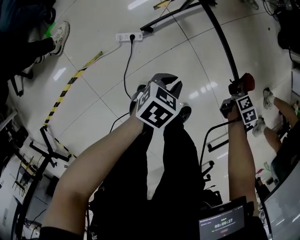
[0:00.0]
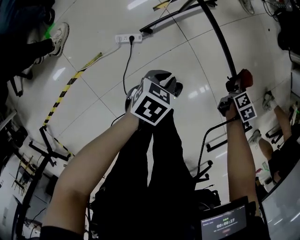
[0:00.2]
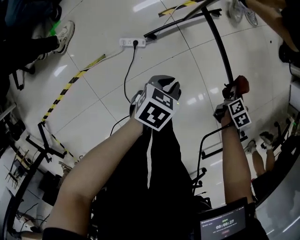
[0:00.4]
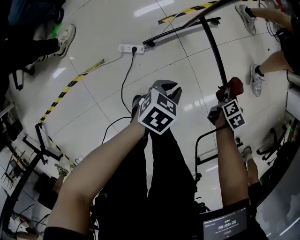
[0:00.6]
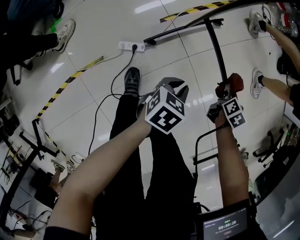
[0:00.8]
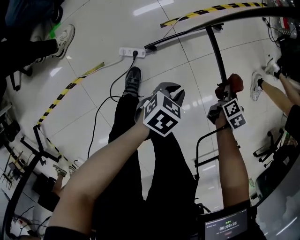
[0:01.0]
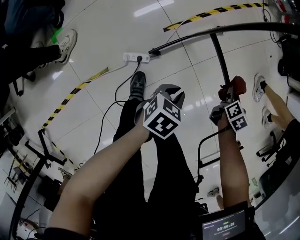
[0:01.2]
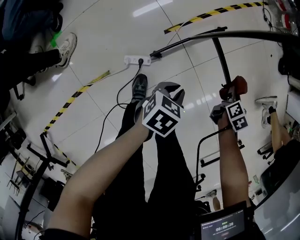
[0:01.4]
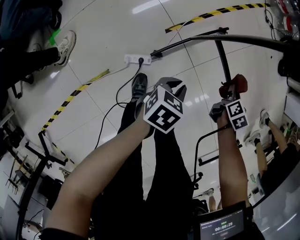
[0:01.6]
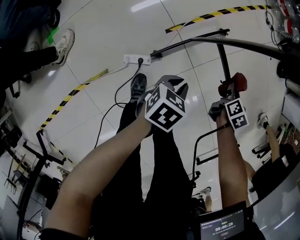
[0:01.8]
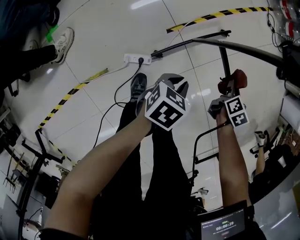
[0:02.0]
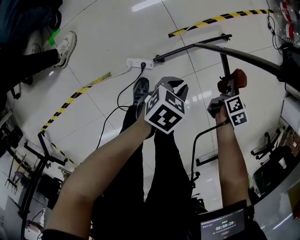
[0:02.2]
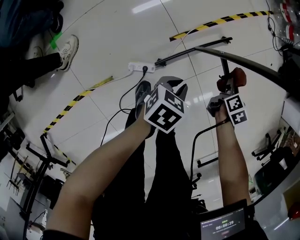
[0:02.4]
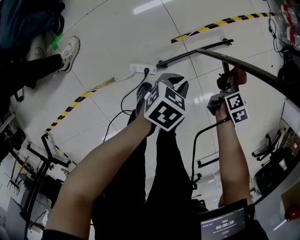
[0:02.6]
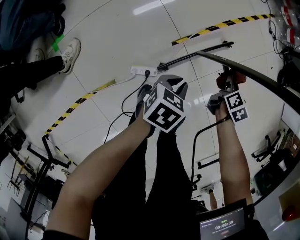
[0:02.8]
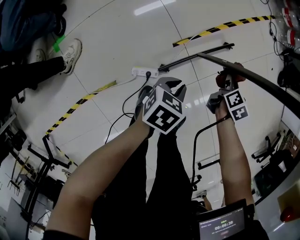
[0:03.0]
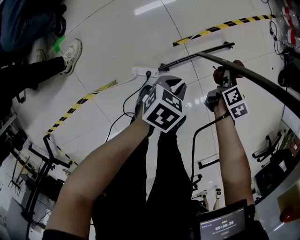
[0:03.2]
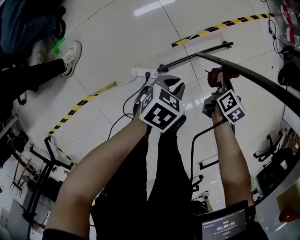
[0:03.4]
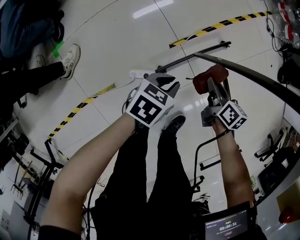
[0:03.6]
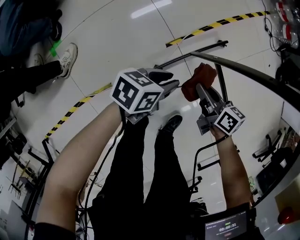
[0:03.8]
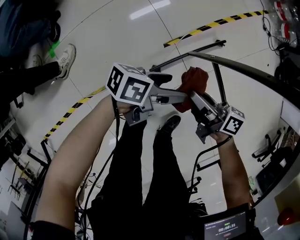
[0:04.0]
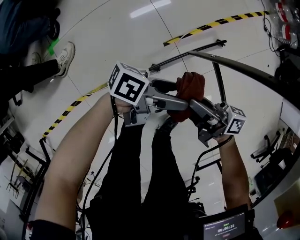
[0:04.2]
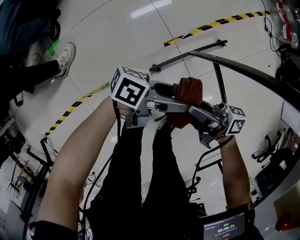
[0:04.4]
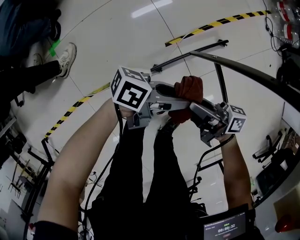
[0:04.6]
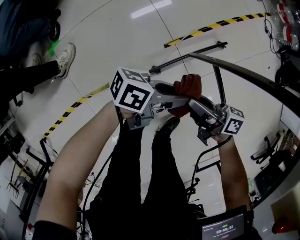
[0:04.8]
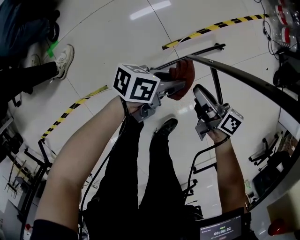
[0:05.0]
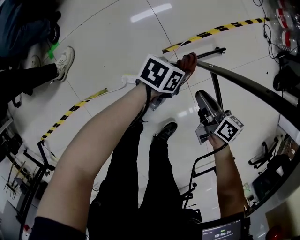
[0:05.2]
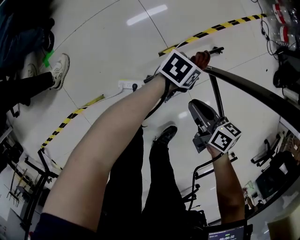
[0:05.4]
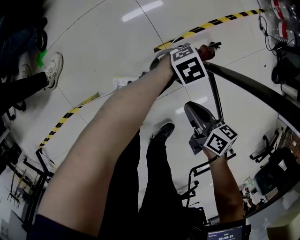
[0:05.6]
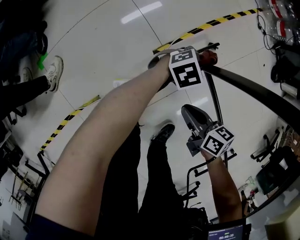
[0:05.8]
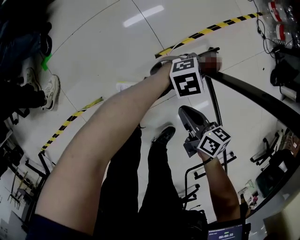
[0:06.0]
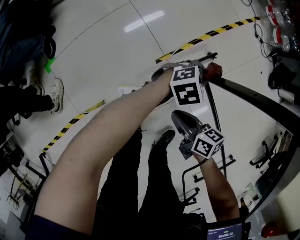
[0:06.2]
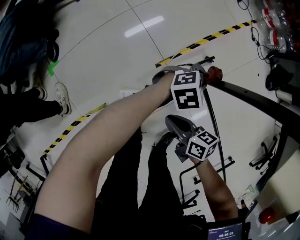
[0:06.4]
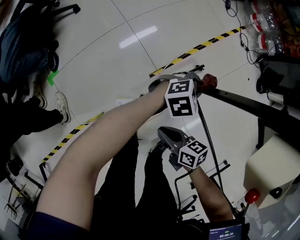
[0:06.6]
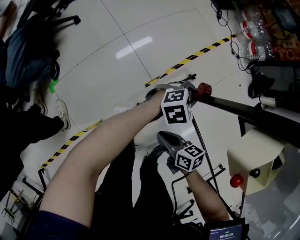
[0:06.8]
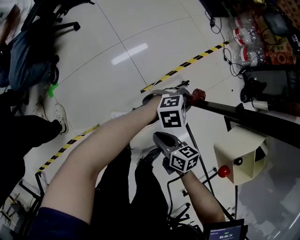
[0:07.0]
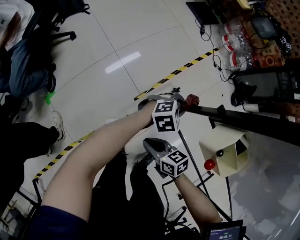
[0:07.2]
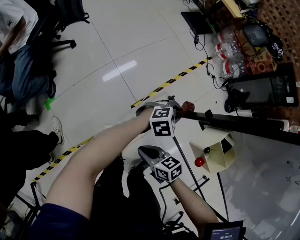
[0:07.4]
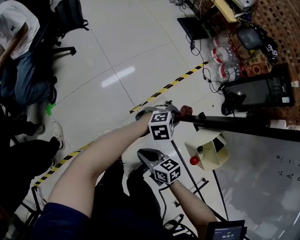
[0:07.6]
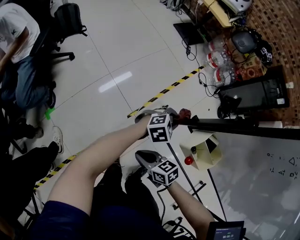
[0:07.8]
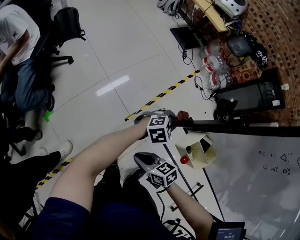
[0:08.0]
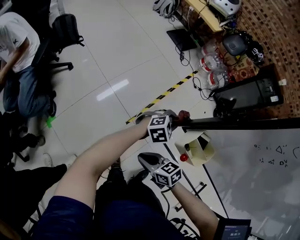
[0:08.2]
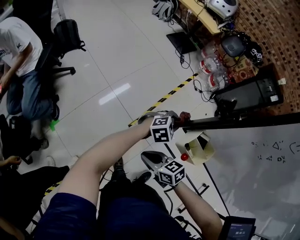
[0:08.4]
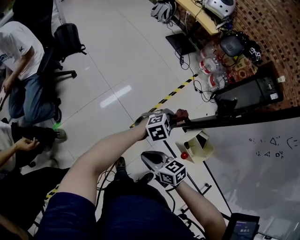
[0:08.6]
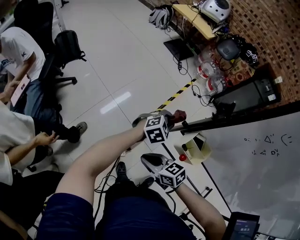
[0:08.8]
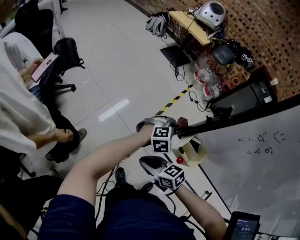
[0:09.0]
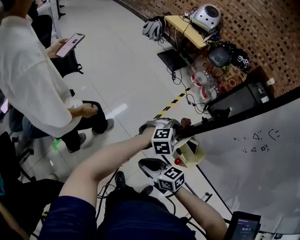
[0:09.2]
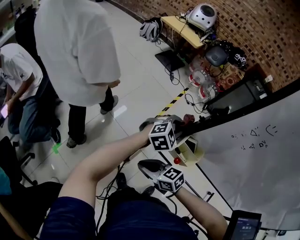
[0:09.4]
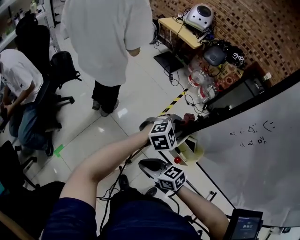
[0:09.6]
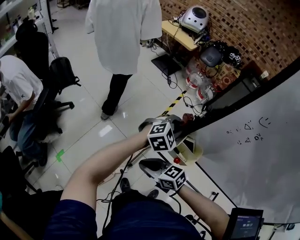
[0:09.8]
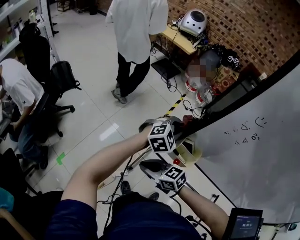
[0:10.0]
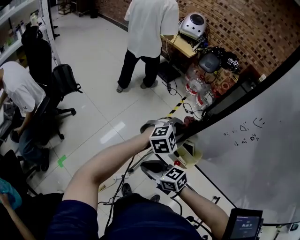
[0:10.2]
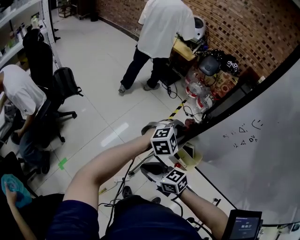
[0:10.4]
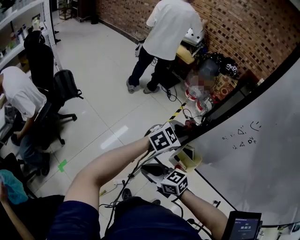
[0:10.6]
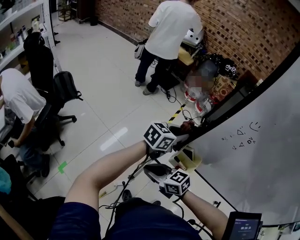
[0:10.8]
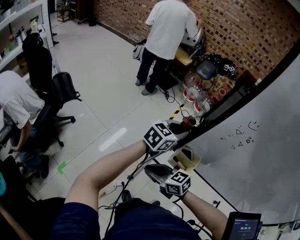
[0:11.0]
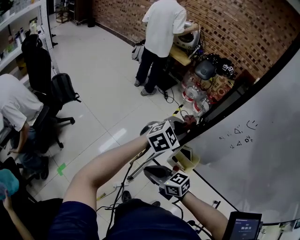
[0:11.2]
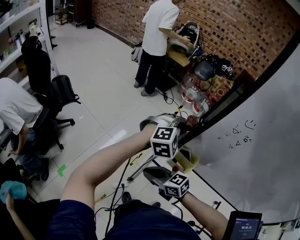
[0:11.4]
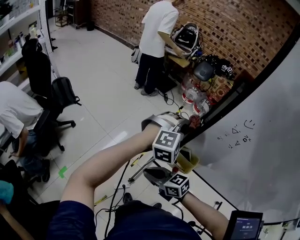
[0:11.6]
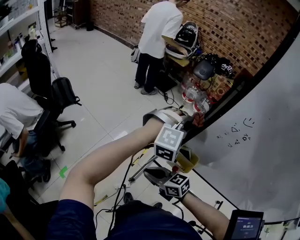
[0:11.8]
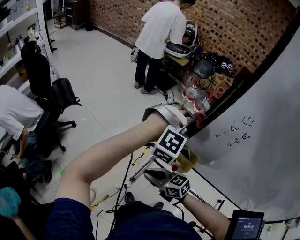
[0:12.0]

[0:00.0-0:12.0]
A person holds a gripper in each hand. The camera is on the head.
0:00.0 to 0:01.6: The right gripper travels to the left by about 20 cm. The left gripper heads to the left and forward, covering approximately 15 cm.
0:01.6 to 0:03.0: The right gripper travels to the left by some 15 cm; the left gripper moves to the left, some 10 cm.
0:03.0 to 0:04.4: The right gripper shifts by about 25 cm, and points its fingers roughly 50 degrees further upward; the left gripper heads upward, covering approximately 10 cm, tips its fingers upward by about 50 degrees, and opens its fingers.
0:04.4 to 0:06.0: The right gripper heads downward, covering approximately 10 cm, and angles its fingers downward, by some 40 degrees, while the left gripper moves approximately 20 cm, tips its fingers downward by roughly 50 degrees, and closes up.
0:06.0 to 0:07.6: The two grippers go about 25 cm upward. The right gripper changes its angle by some 20 degrees.
0:07.6 to 0:09.0: Both grippers travel together upward, about 15 cm. The left gripper turns by about 20 degrees.
0:09.0 to 0:10.4: The left gripper goes approximately 15 cm upward. The right gripper is displaced upward by approximately 5 cm.
0:10.4 to 0:12.0: The left gripper heads upward, covering roughly 10 cm, and rolls clockwise, seen from behind, by roughly 50 degrees.

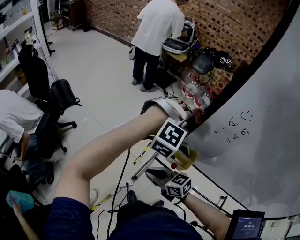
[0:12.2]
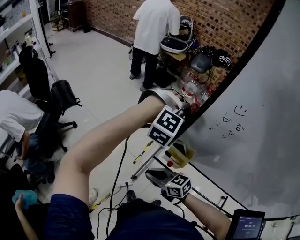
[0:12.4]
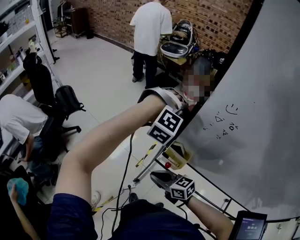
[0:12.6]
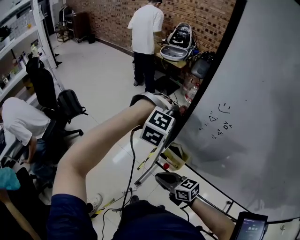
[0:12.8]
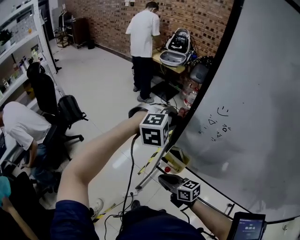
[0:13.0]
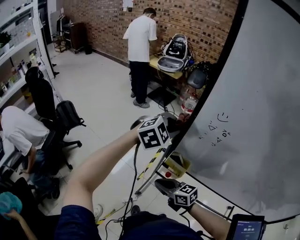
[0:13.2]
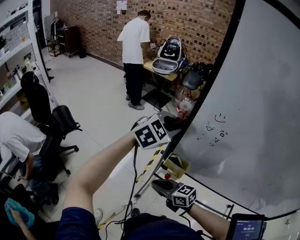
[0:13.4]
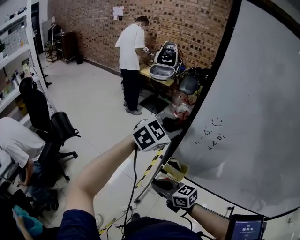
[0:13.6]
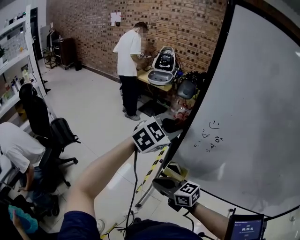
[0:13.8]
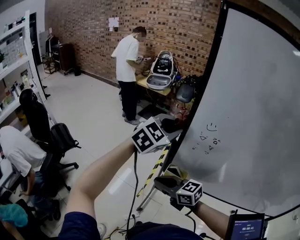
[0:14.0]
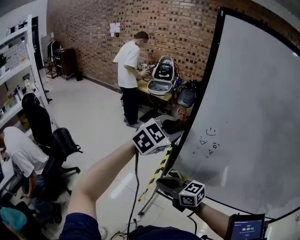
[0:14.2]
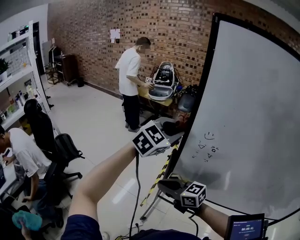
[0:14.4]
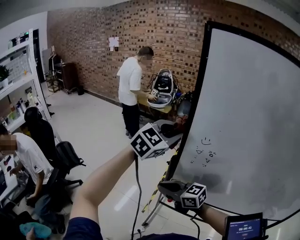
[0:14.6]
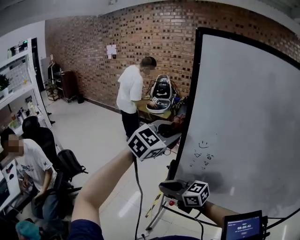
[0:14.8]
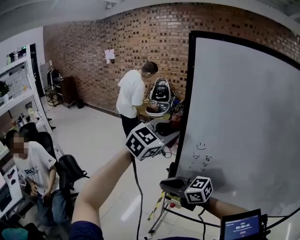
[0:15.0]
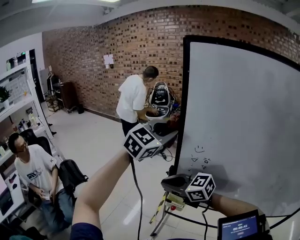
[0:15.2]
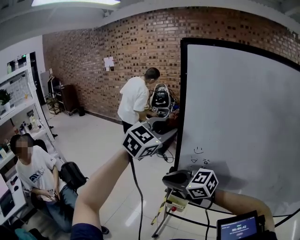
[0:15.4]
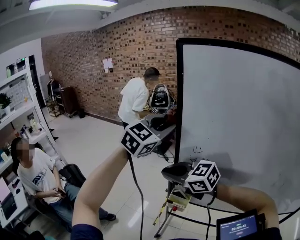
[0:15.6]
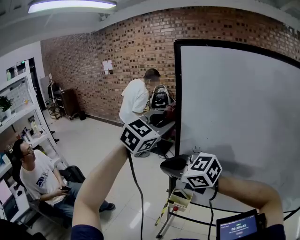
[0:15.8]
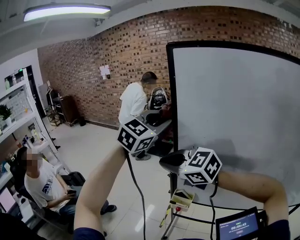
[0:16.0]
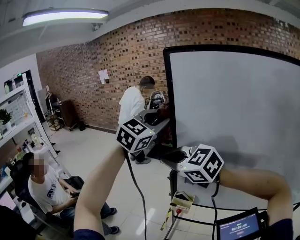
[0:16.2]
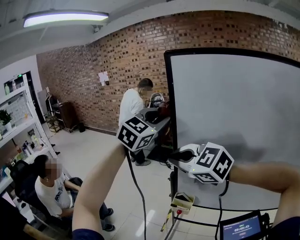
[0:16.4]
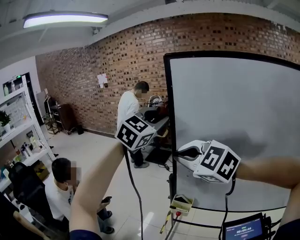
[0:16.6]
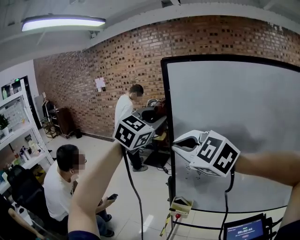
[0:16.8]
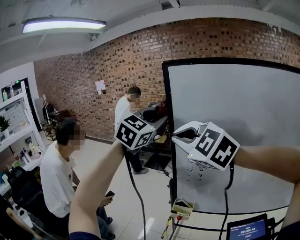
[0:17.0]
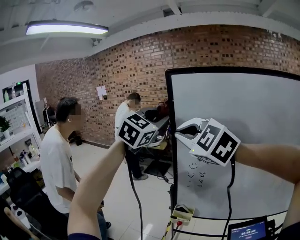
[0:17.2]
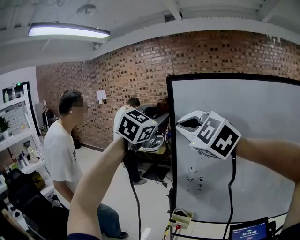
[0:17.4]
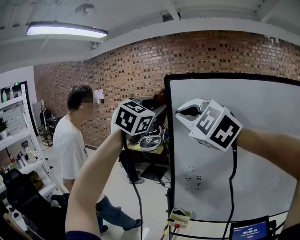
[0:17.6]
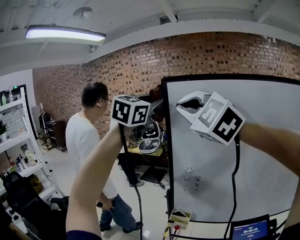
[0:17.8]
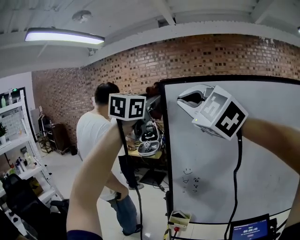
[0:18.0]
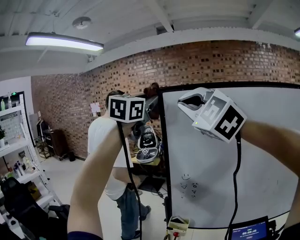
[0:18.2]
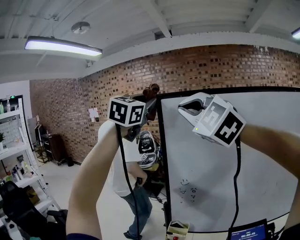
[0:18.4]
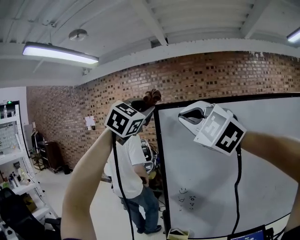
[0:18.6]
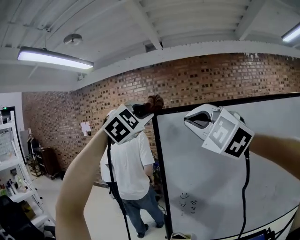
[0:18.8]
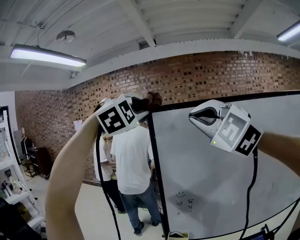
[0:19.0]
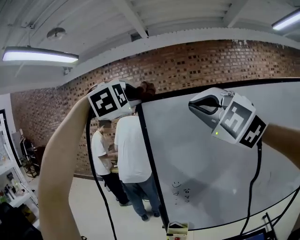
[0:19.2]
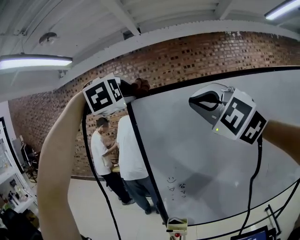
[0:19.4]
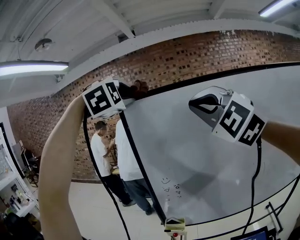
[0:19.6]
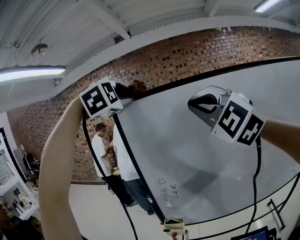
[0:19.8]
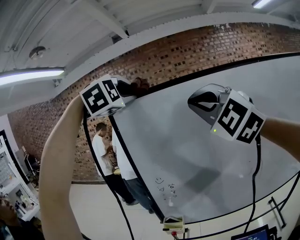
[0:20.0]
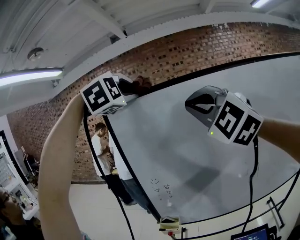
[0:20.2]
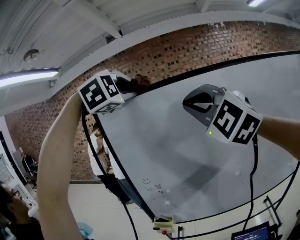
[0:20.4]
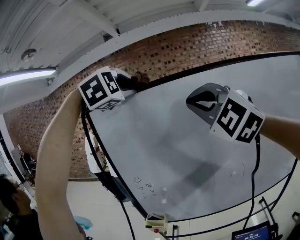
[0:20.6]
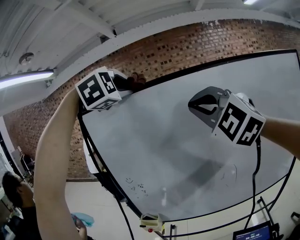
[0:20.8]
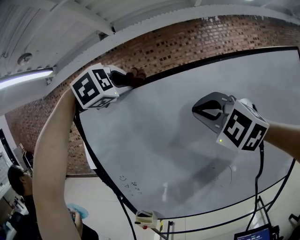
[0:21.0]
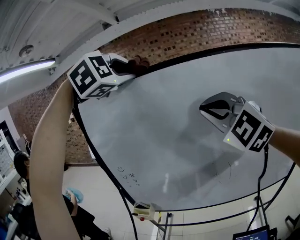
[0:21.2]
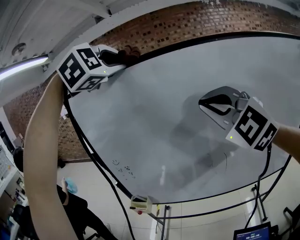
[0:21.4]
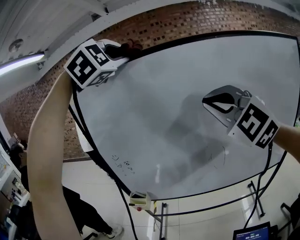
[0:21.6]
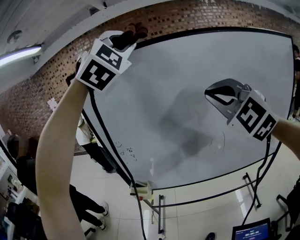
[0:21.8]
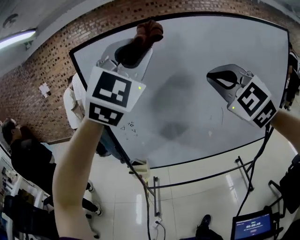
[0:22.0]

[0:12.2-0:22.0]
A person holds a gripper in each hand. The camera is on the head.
0:12.2 to 0:13.6: The grippers both shift upward by approximately 10 cm. The left gripper rolls counterclockwise, seen from behind, by approximately 60 degrees.
0:13.6 to 0:15.0: Both grippers move upward, about 15 cm.
0:15.0 to 0:16.4: The left gripper shifts approximately 10 cm upward. Meanwhile the right gripper is displaced upward by about 20 cm, and turns by some 40 degrees.
0:16.4 to 0:17.8: The right gripper travels upward by roughly 25 cm, and rotates approximately 40 degrees, while the left gripper travels upward by roughly 15 cm.
0:17.8 to 0:19.2: The left gripper is displaced upward by approximately 10 cm, and rotates around the line of its fingers by about 60 degrees, clockwise from behind; the right gripper is displaced to the right and upward by roughly 10 cm.
0:19.2 to 0:20.6: The two grippers go roughly 20 cm to the right.
0:20.6 to 0:22.0: The left gripper moves backward and downward, about 20 cm, and angles its fingers upward, by roughly 40 degrees; the right gripper shifts approximately 15 cm downward, backward and to the right.

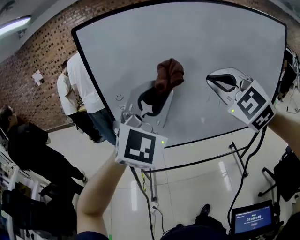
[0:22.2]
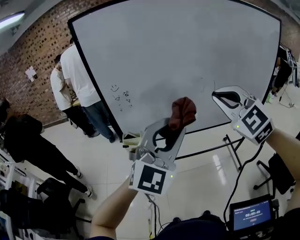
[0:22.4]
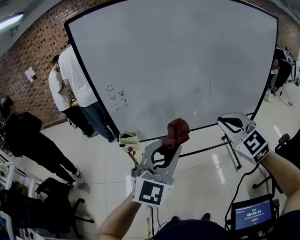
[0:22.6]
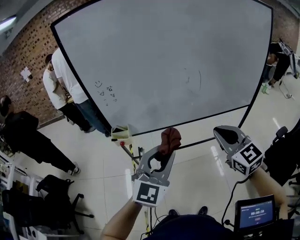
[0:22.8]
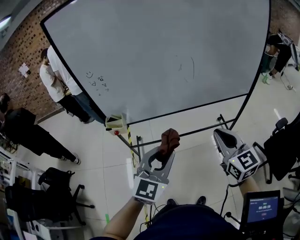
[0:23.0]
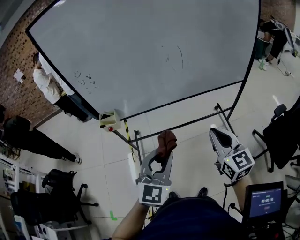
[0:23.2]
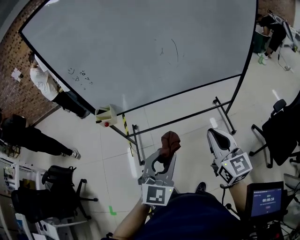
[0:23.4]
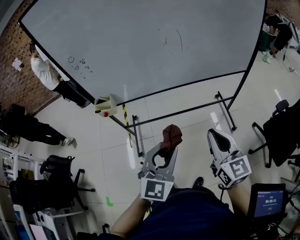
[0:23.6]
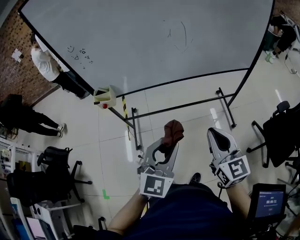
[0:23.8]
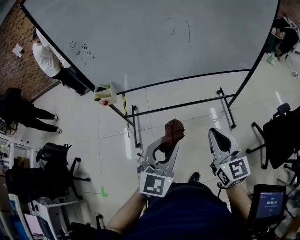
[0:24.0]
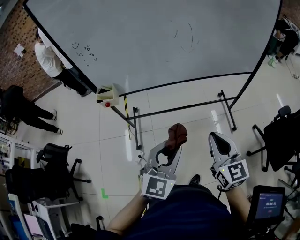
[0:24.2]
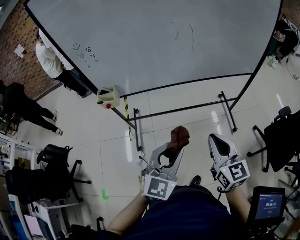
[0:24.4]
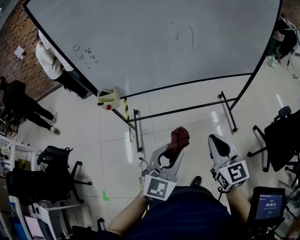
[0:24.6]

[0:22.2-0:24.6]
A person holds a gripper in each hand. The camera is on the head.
0:22.2 to 0:23.4: The right gripper heads downward, to the right and backward, covering approximately 40 cm, and twists some 60 degrees clockwise, seen from behind, while the left gripper heads downward, backward and to the right, covering approximately 40 cm, and swivels some 40 degrees.
0:23.4 to 0:24.6: The right gripper changes place by approximately 5 cm.
